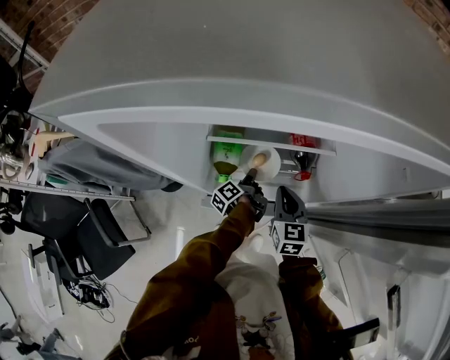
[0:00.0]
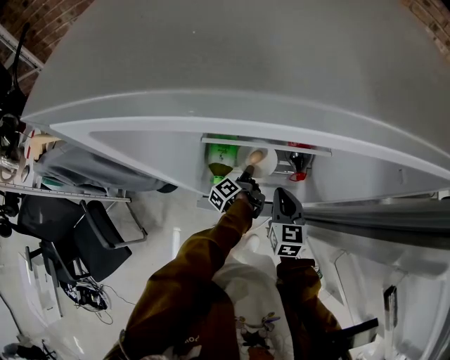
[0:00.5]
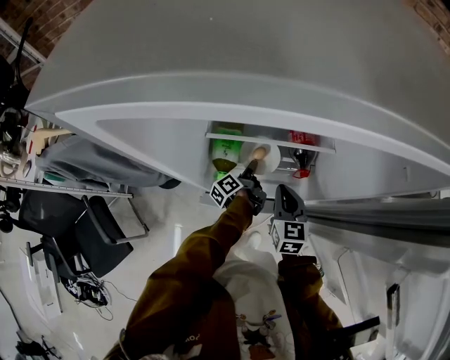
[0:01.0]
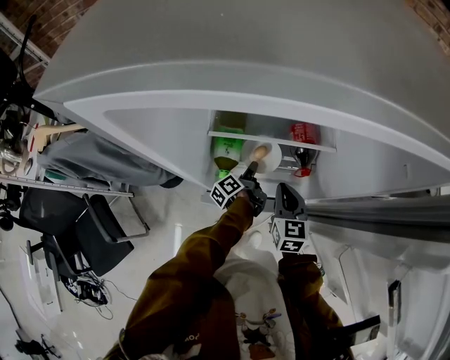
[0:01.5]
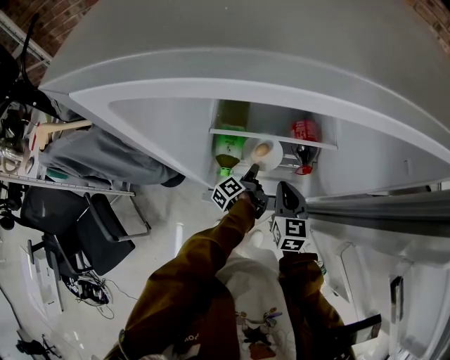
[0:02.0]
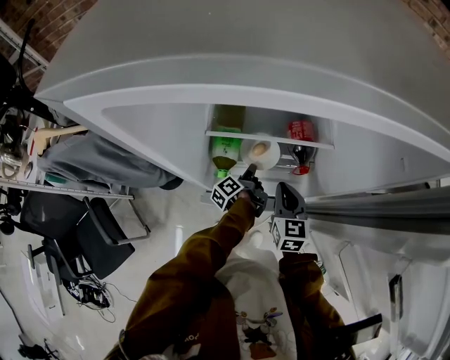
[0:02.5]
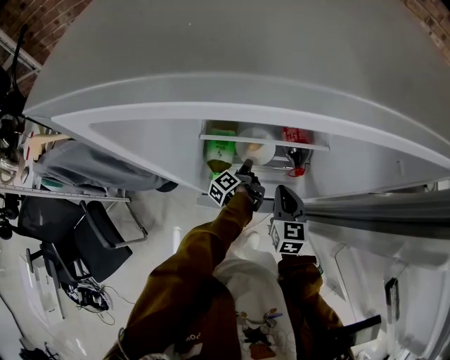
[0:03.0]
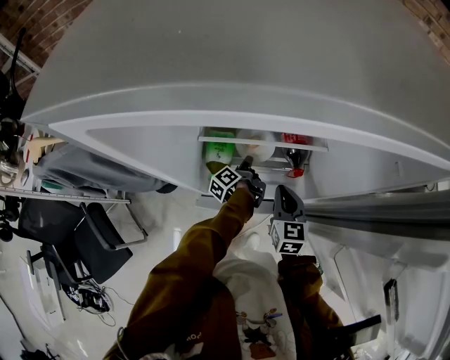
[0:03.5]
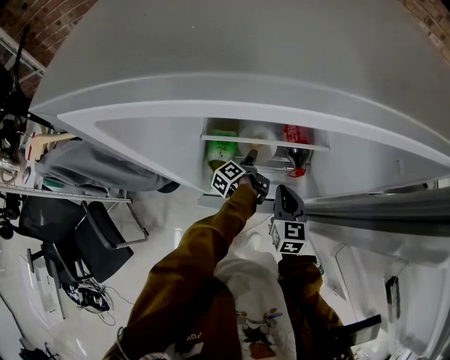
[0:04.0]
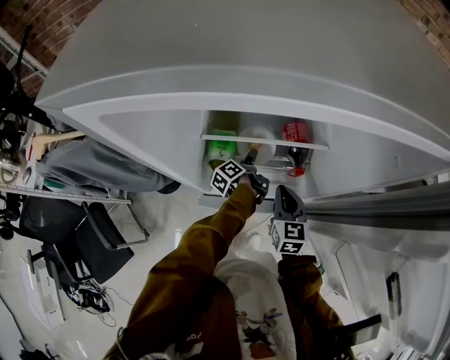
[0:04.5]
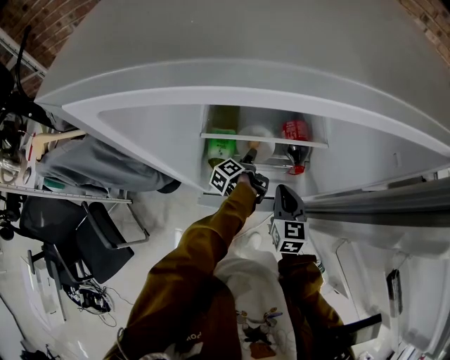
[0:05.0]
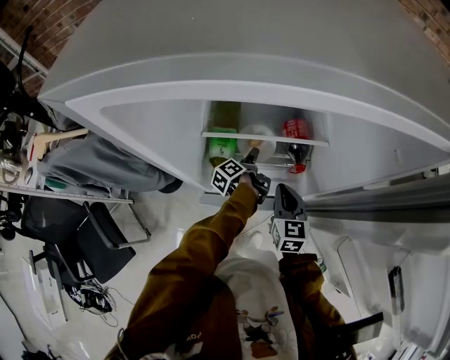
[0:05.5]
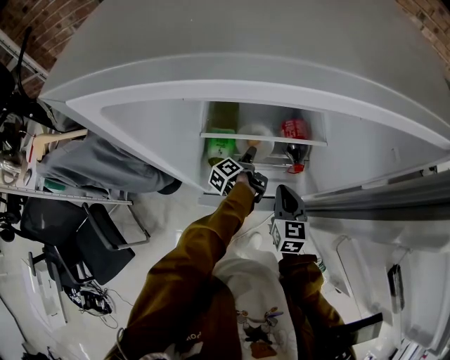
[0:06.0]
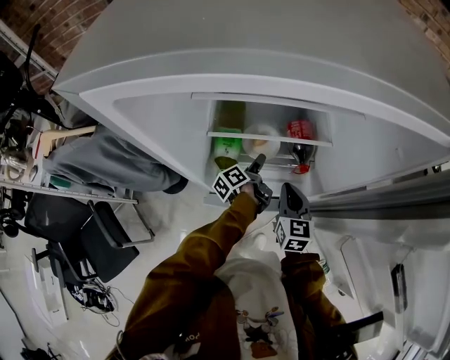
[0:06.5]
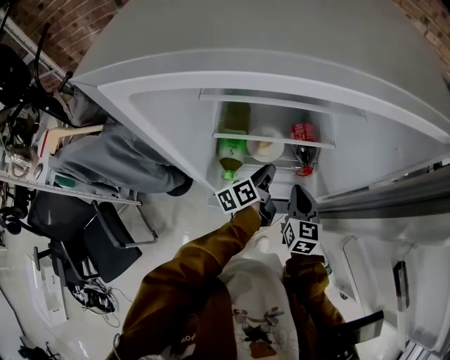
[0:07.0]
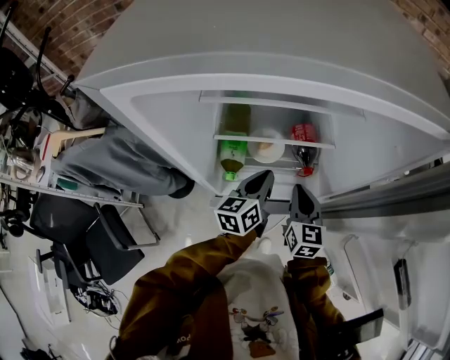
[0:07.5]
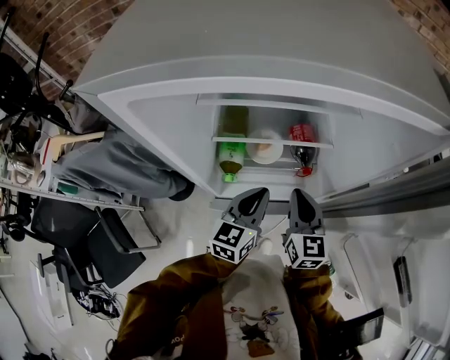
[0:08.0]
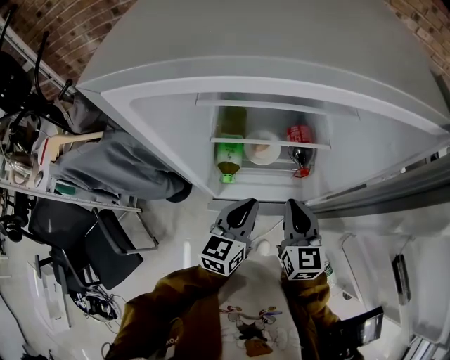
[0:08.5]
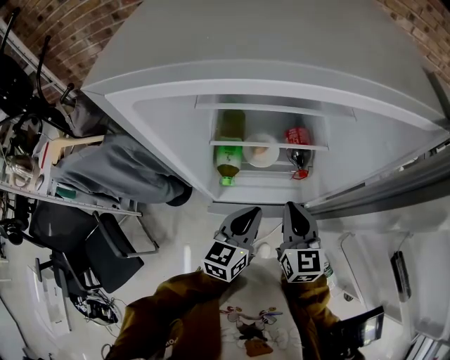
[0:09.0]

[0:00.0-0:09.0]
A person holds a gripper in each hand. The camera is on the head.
0:07.0 to 0:09.0: The right gripper goes roughly 10 cm upward.

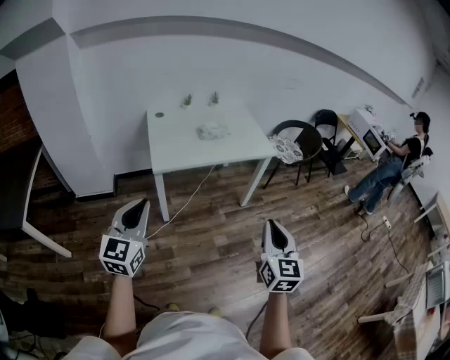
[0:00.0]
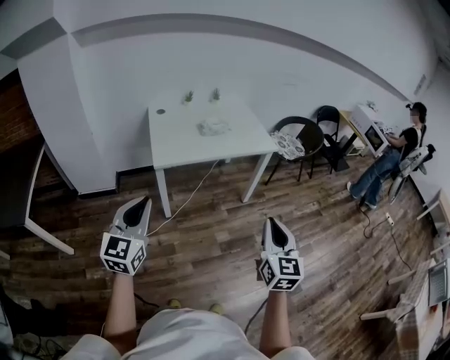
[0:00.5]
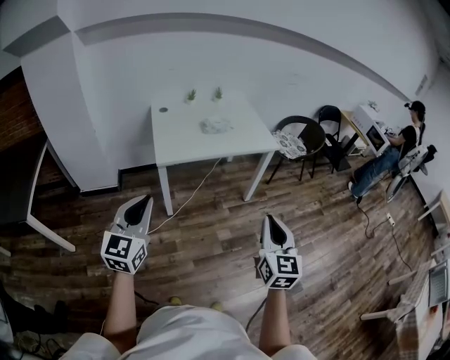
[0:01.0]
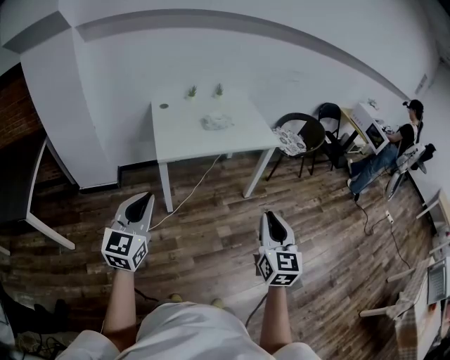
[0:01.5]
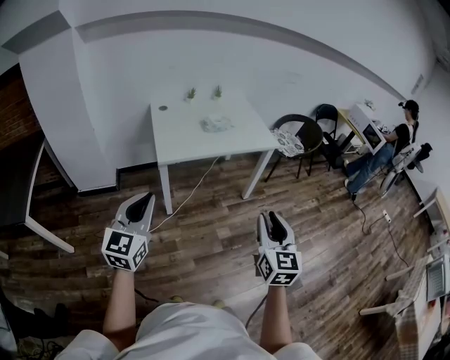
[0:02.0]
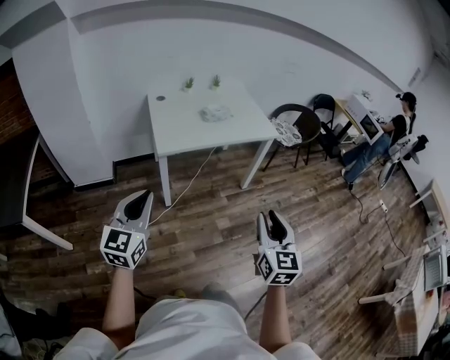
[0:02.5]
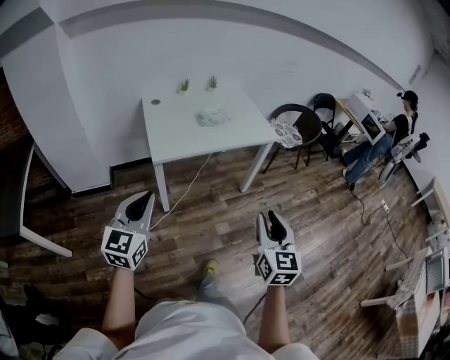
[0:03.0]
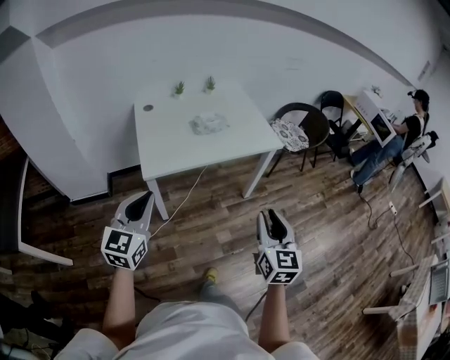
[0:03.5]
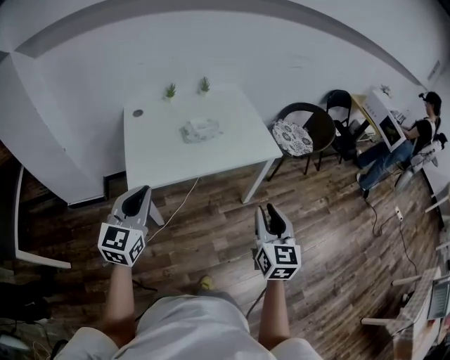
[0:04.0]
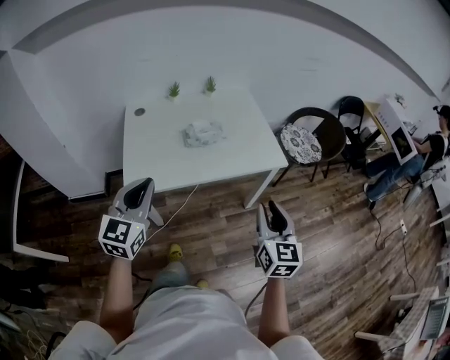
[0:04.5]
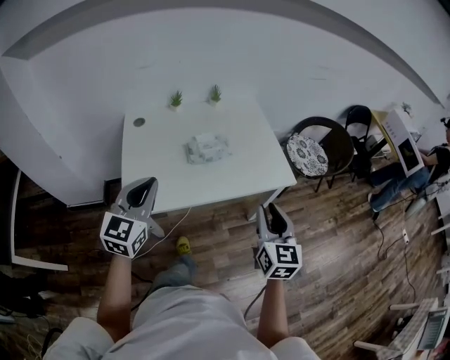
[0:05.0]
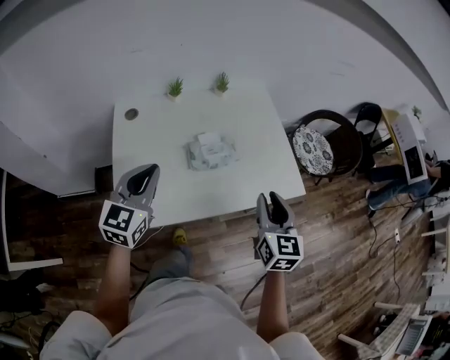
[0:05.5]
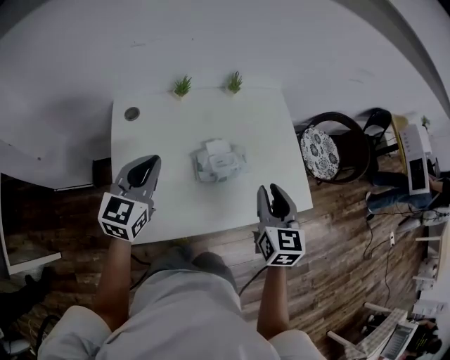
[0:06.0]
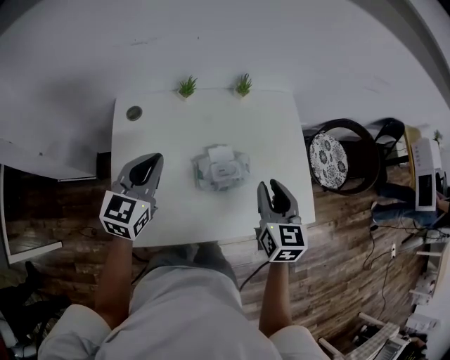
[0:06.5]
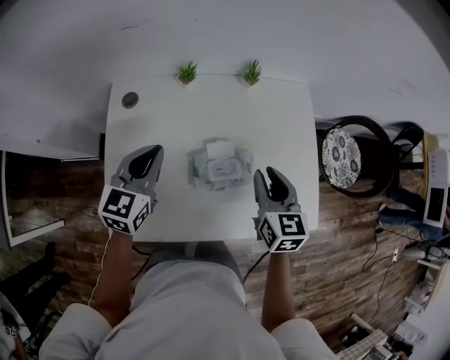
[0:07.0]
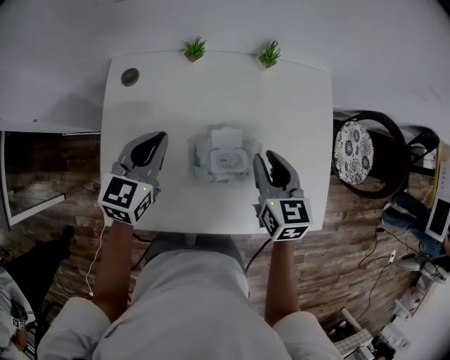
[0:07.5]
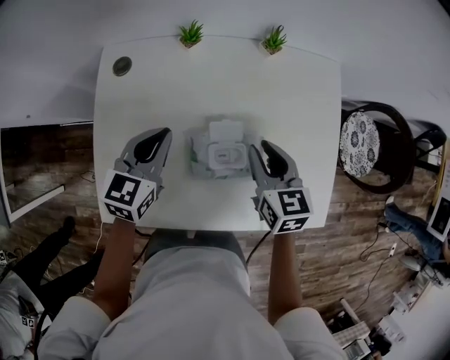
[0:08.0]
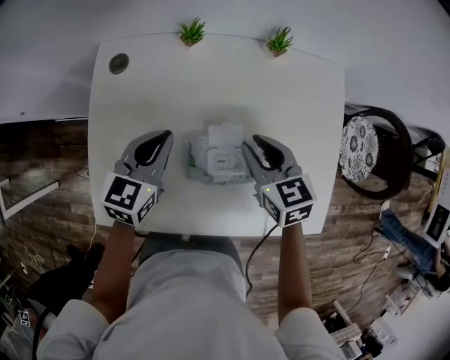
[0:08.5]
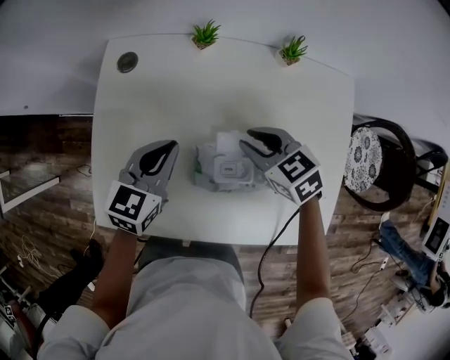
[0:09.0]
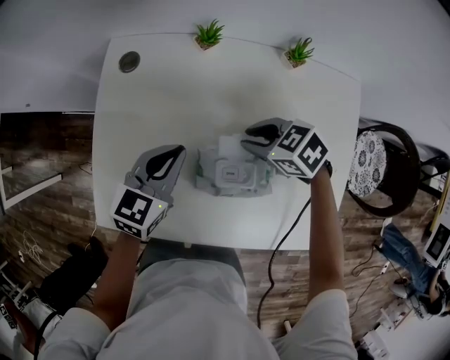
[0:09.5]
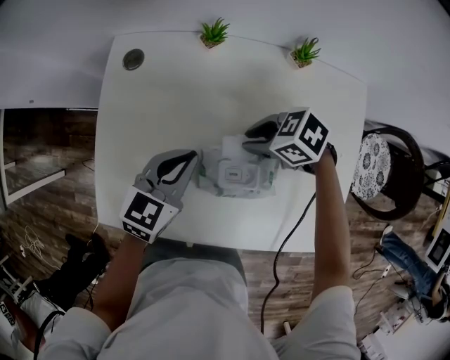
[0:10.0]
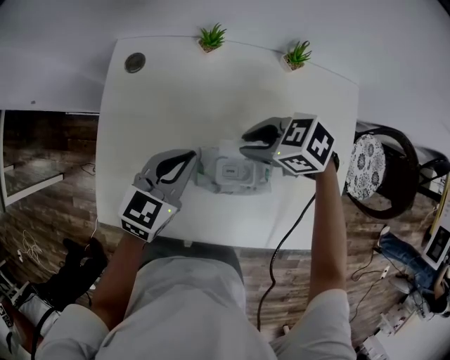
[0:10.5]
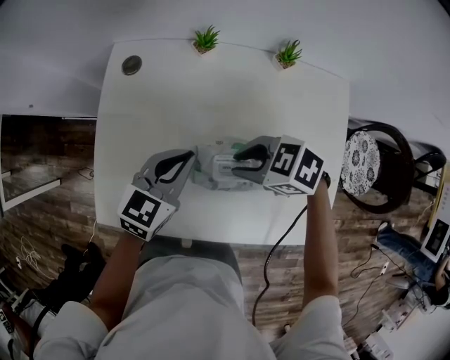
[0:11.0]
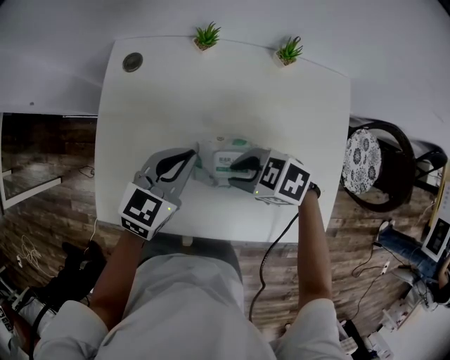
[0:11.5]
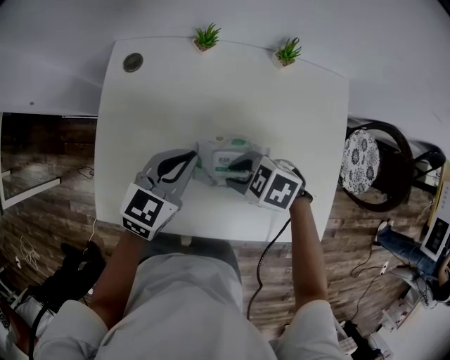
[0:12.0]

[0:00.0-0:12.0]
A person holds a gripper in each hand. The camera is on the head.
0:00.0 to 0:02.0: The right gripper opens its fingers.
0:02.0 to 0:04.0: Both grippers move forward, about 30 cm.
0:04.0 to 0:06.0: The two grippers travel together, forward, about 40 cm.
0:06.0 to 0:08.0: The left gripper shifts approximately 20 cm downward, forward and to the right. Meanwhile the right gripper shifts about 25 cm forward and downward, and changes its angle by some 30 degrees.
0:08.0 to 0:10.0: The left gripper ends up about 5 cm from where it was, while the right gripper is displaced downward by roughly 10 cm, and changes its angle by some 70 degrees.
0:10.0 to 0:12.0: The right gripper ends up some 10 cm from where it was.

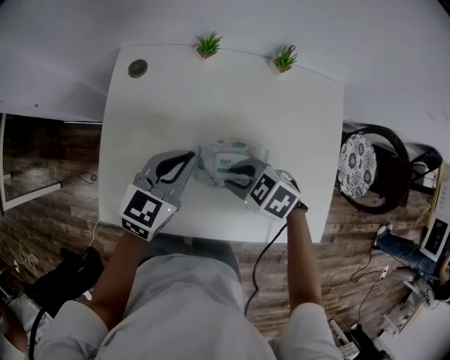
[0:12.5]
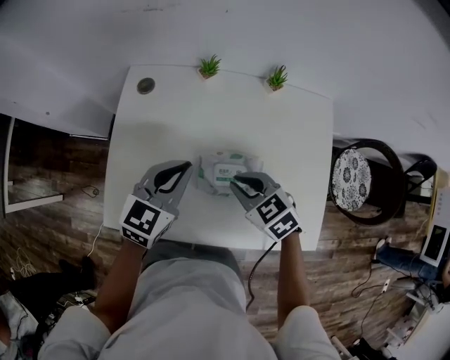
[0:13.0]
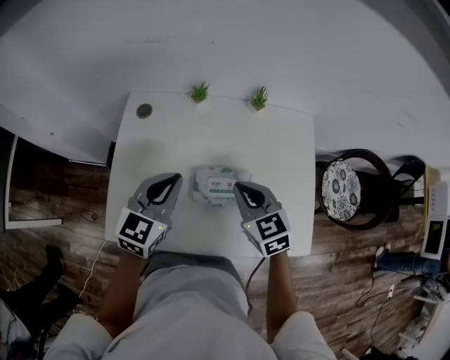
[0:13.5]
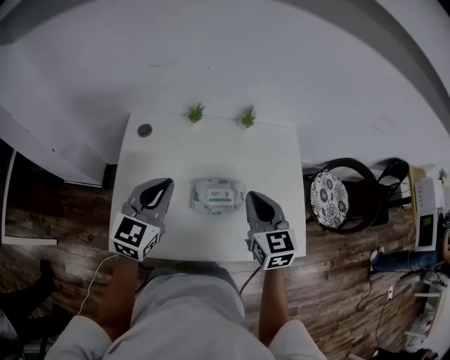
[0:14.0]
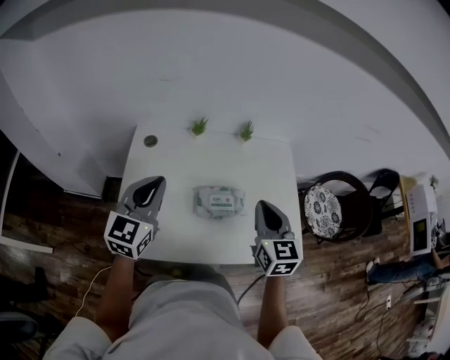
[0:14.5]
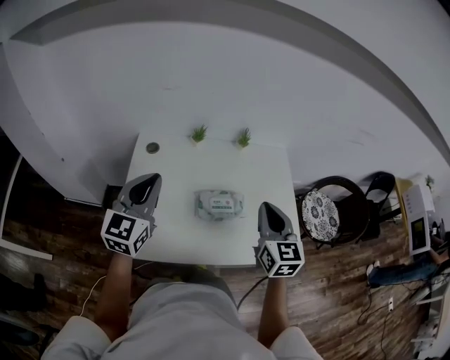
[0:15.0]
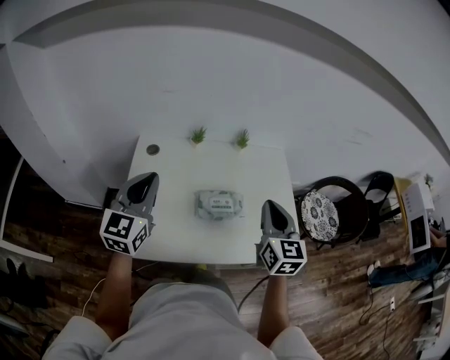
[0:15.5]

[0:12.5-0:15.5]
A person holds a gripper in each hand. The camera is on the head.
0:12.5 to 0:14.0: The grippers both shift upward by some 15 cm. The right gripper tilts its fingers roughly 30 degrees upward, and closes up.
0:14.0 to 0:15.5: The left gripper is displaced upward, to the left and backward by roughly 10 cm, while the right gripper moves upward and backward, roughly 10 cm.

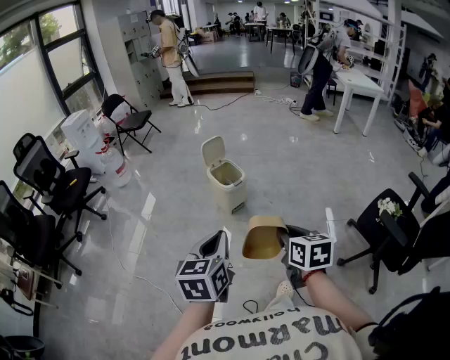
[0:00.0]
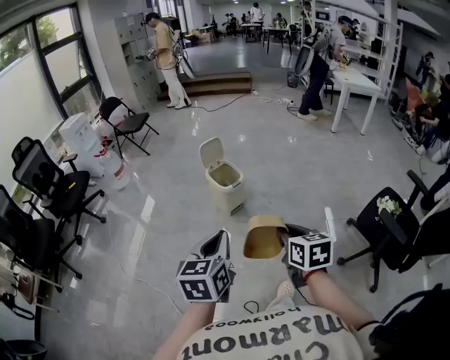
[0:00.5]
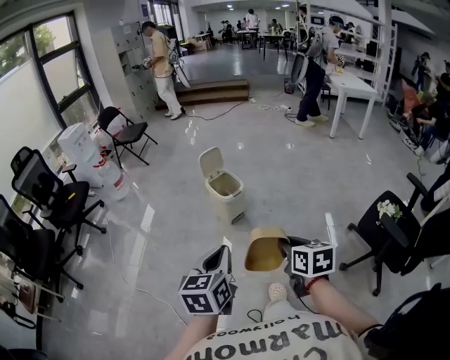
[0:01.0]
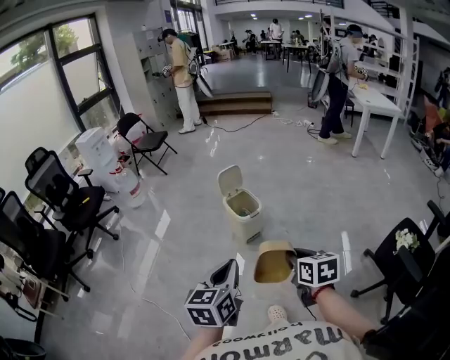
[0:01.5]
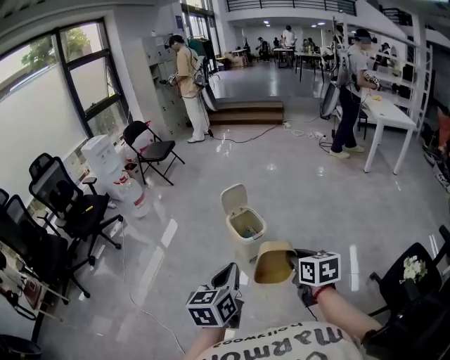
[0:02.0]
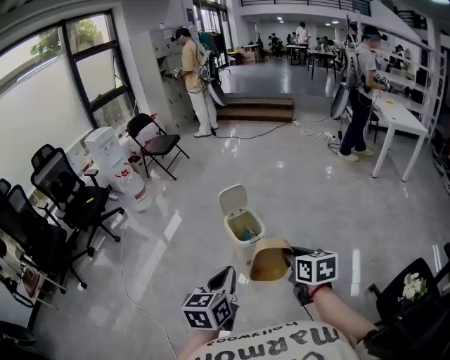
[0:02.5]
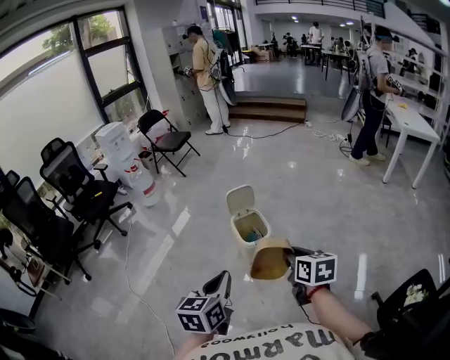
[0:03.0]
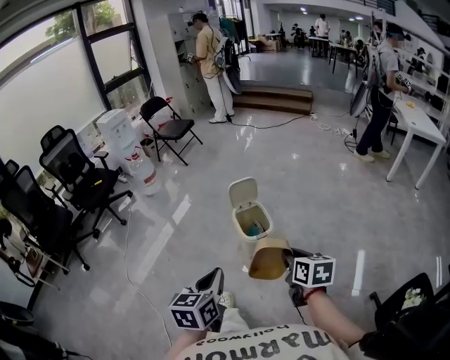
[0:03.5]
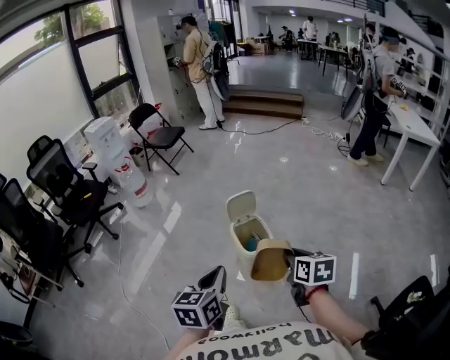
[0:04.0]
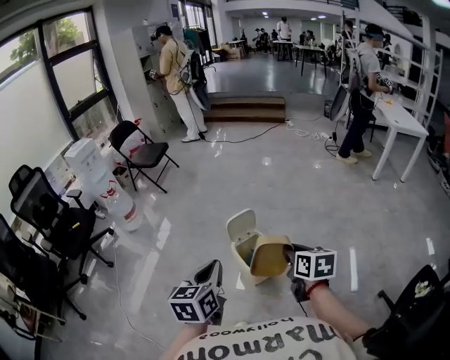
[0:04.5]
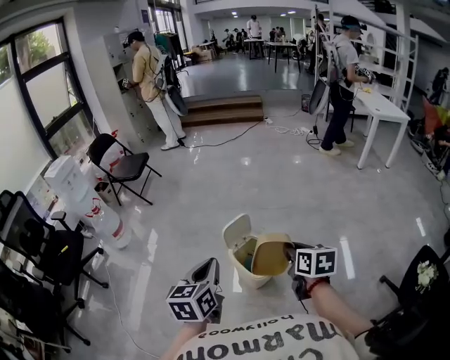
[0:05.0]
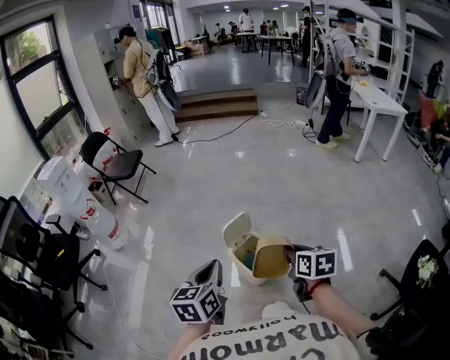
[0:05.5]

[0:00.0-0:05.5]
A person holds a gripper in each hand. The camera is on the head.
0:00.0 to 0:02.0: Both grippers move forward, some 20 cm.
0:02.0 to 0:03.5: The right gripper heads forward and downward, covering roughly 10 cm. The left gripper is displaced downward and forward by roughly 10 cm.
0:03.5 to 0:05.5: The left gripper is displaced forward by some 30 cm; the right gripper heads forward and to the left, covering roughly 20 cm.
